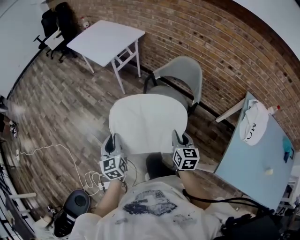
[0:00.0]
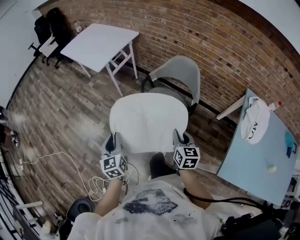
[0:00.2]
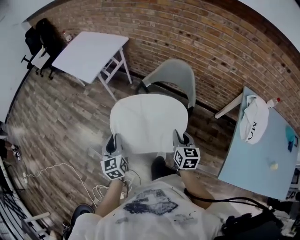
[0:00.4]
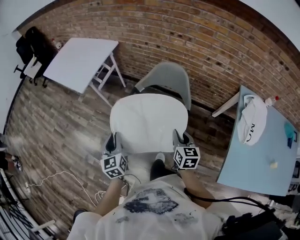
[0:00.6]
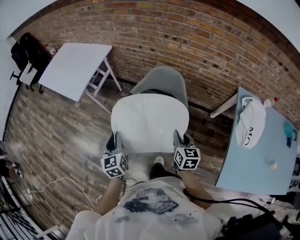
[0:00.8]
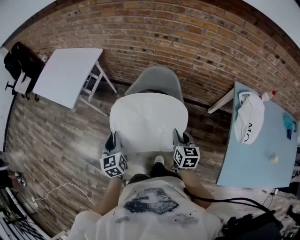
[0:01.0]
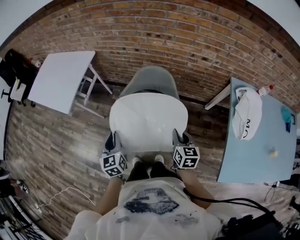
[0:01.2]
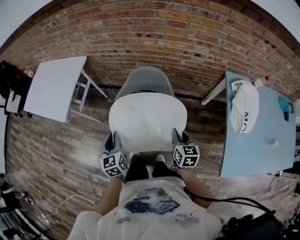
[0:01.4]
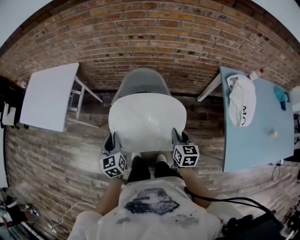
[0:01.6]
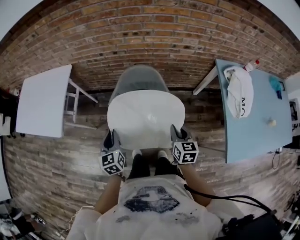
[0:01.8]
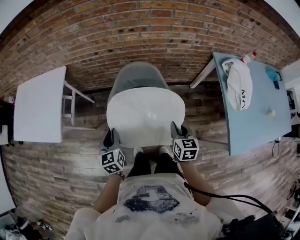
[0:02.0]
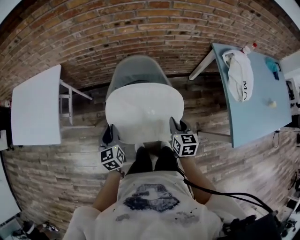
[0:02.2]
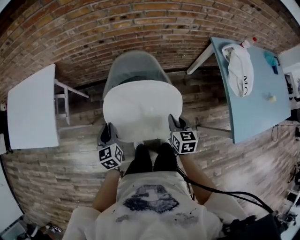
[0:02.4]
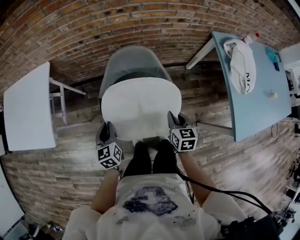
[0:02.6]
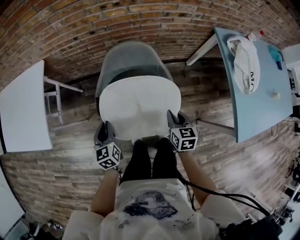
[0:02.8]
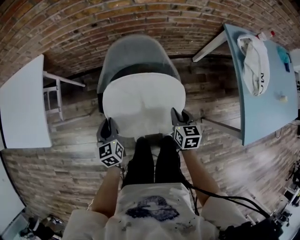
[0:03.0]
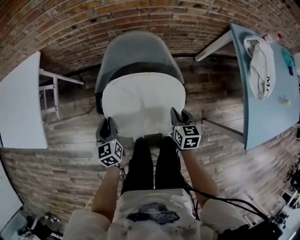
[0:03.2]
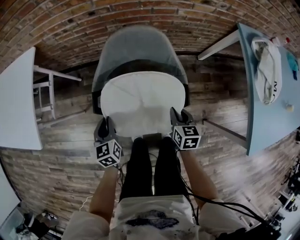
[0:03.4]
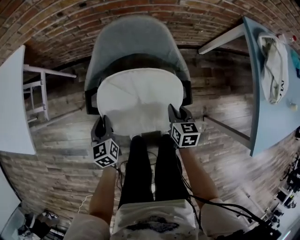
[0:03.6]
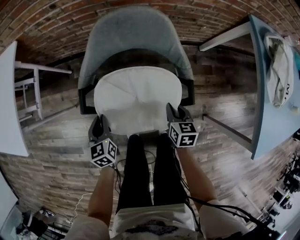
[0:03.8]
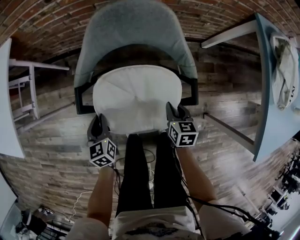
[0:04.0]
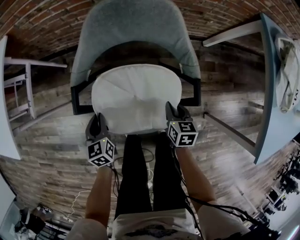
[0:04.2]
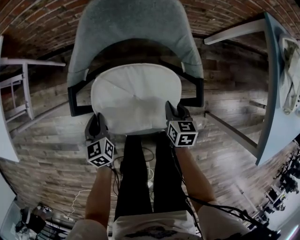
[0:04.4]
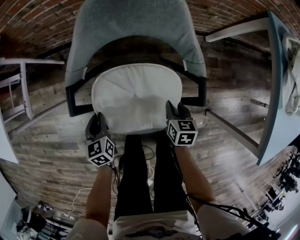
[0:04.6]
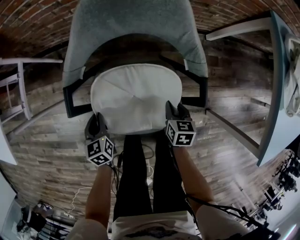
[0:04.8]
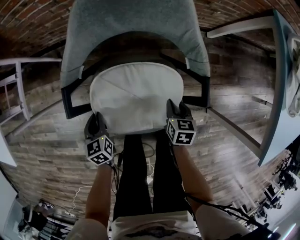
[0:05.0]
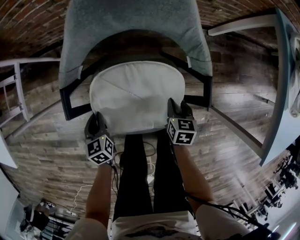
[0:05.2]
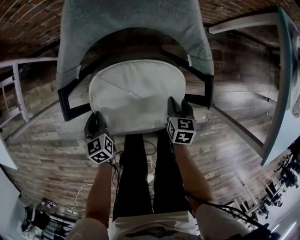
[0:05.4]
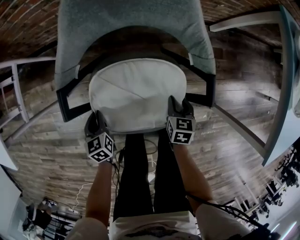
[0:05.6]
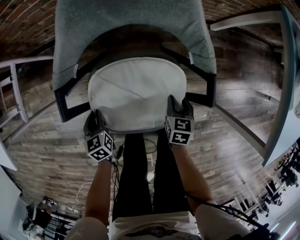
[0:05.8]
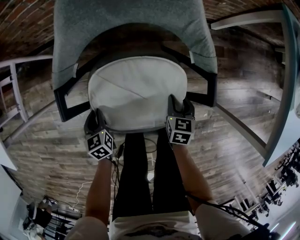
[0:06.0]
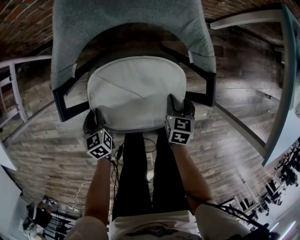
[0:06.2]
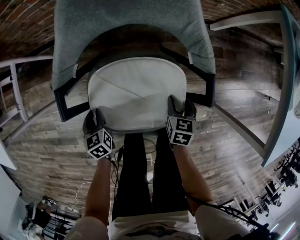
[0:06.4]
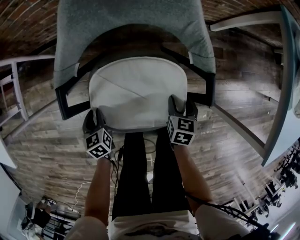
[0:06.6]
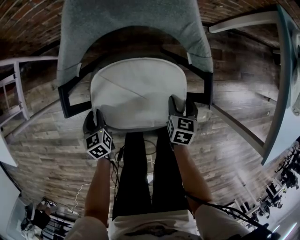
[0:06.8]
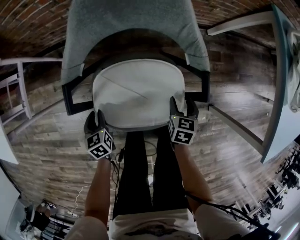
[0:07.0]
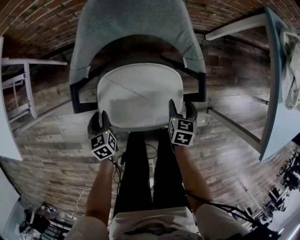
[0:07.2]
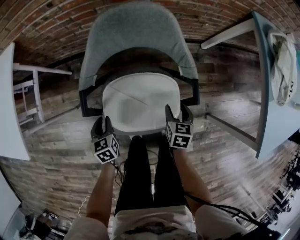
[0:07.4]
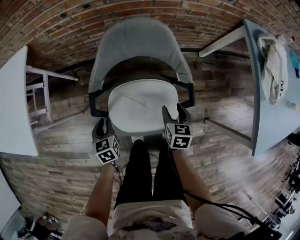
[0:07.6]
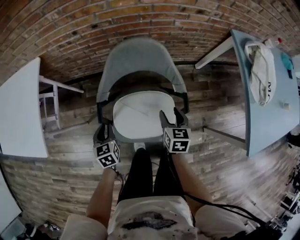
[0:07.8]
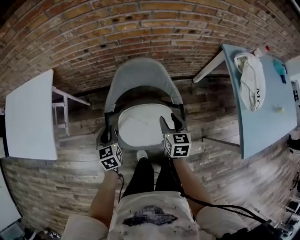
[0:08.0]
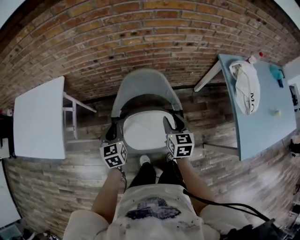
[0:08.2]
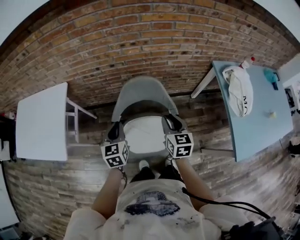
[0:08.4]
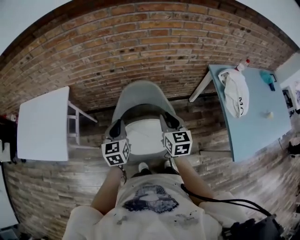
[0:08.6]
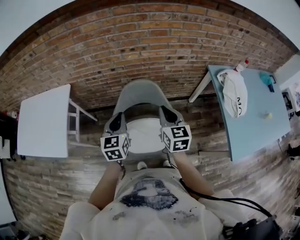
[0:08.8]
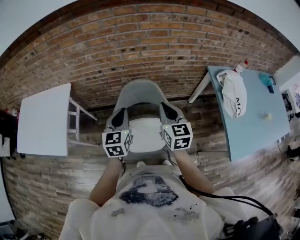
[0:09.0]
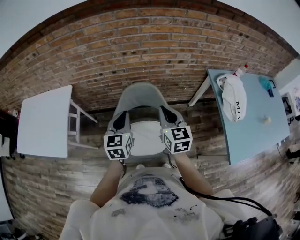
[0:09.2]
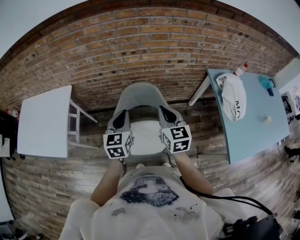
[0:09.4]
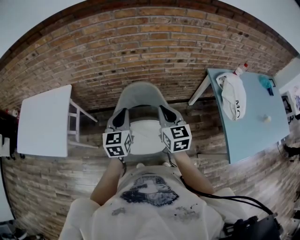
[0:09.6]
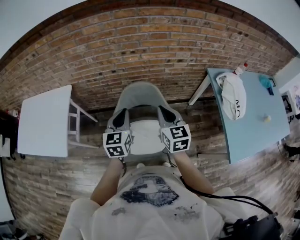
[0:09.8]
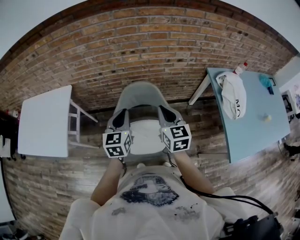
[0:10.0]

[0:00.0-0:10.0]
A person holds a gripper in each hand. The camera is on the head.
0:00.0 to 0:01.4: The two grippers go approximately 35 cm forward and to the right. The left gripper changes its angle by some 30 degrees. Meanwhile the right gripper swivels approximately 30 degrees.
0:01.4 to 0:02.8: The right gripper shifts some 15 cm downward and to the left; the left gripper goes approximately 20 cm downward and forward.
0:02.8 to 0:04.2: Both grippers move downward, some 25 cm.
0:04.2 to 0:05.8: The two grippers go roughly 10 cm downward.
0:05.8 to 0:07.2: Both grippers move upward, approximately 5 cm. The right gripper opens.
0:07.2 to 0:08.6: The grippers both shift upward by roughly 50 cm. The right gripper points its fingers about 30 degrees further upward, and closes up. Meanwhile the left gripper changes its angle by about 30 degrees.
0:08.6 to 0:10.0: Both grippers move upward, roughly 5 cm.

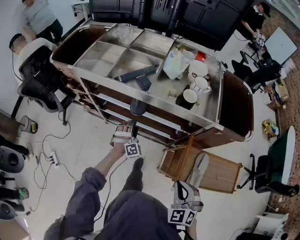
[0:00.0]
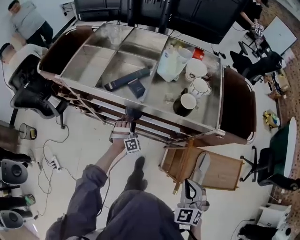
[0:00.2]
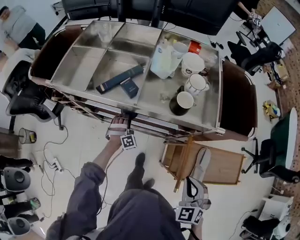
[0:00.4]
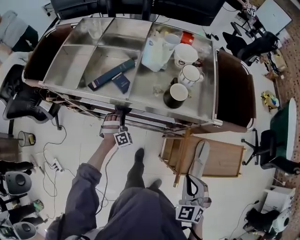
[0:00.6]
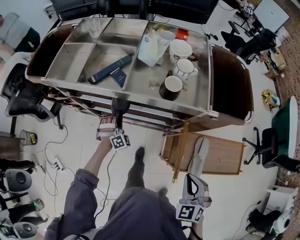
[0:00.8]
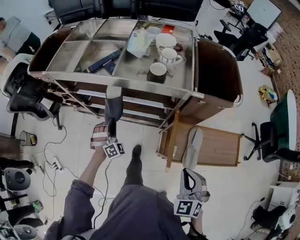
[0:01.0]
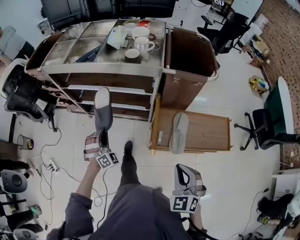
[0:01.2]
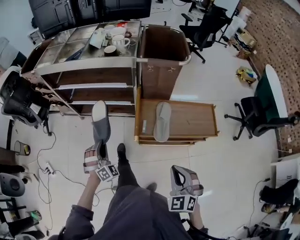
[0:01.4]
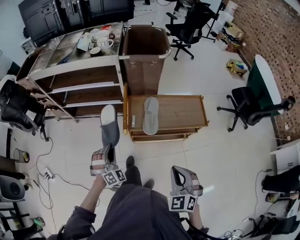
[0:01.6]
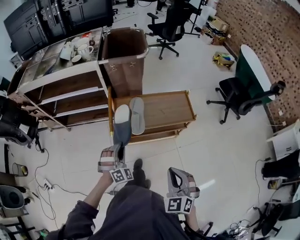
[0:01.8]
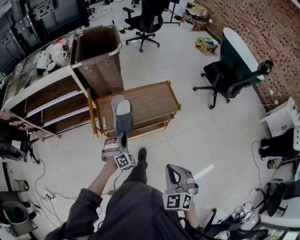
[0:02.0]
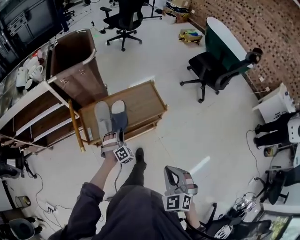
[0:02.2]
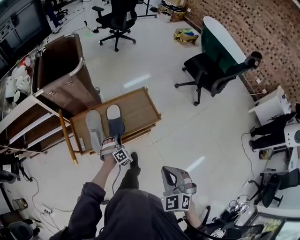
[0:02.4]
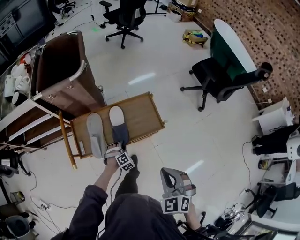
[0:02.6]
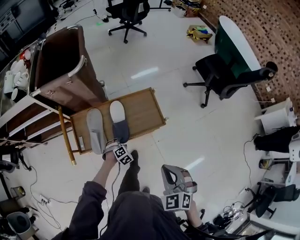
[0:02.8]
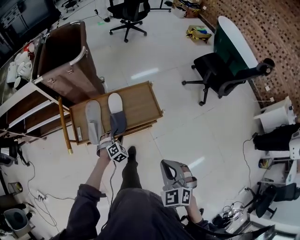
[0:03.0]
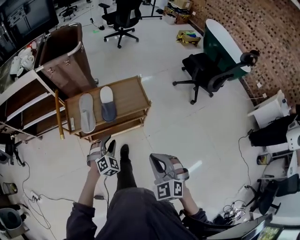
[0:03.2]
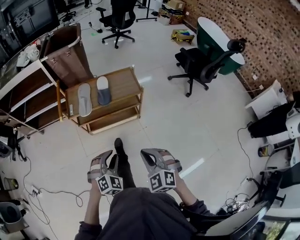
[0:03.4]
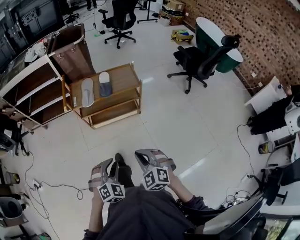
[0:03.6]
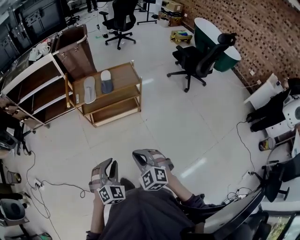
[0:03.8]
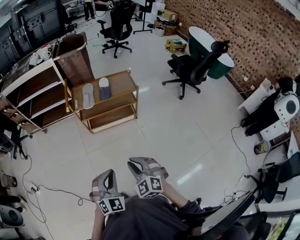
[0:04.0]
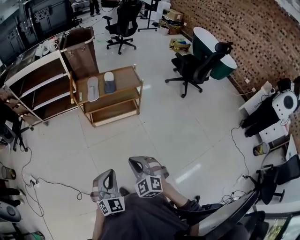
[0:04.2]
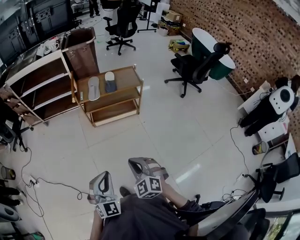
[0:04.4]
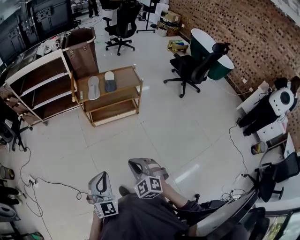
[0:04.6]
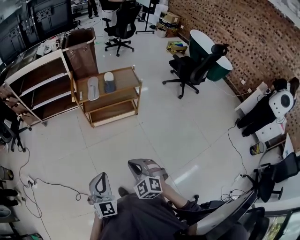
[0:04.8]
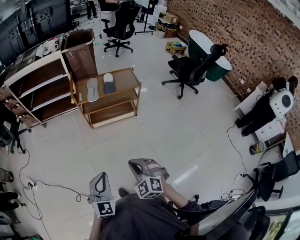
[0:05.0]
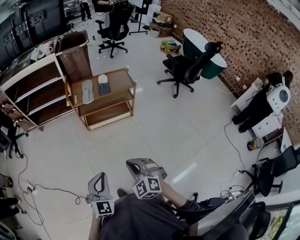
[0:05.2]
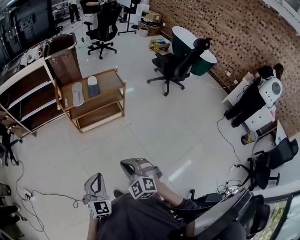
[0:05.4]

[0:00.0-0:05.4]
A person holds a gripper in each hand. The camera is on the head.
0:00.0 to 0:01.4: The left gripper travels backward by roughly 35 cm, and closes its fingers. The right gripper heads backward and to the right, covering about 35 cm.
0:01.4 to 0:02.8: The left gripper changes place by about 60 cm, tips its fingers downward by approximately 40 degrees, and opens up, while the right gripper shifts by about 35 cm, and turns by approximately 20 degrees.
0:02.8 to 0:04.0: The two grippers travel together, backward, some 60 cm. The left gripper travels upward by roughly 35 cm, tilts its fingers approximately 40 degrees upward, and closes up. The right gripper swivels some 20 degrees.
0:04.0 to 0:05.4: The right gripper is displaced backward by some 5 cm. Meanwhile the left gripper moves to the left and backward, approximately 10 cm.

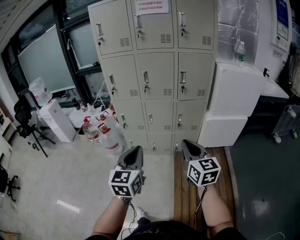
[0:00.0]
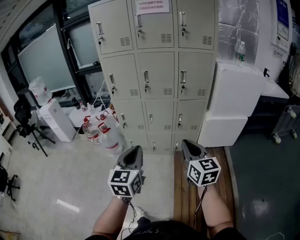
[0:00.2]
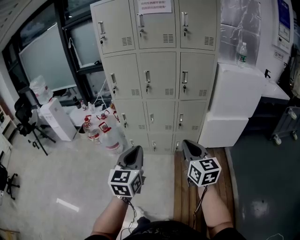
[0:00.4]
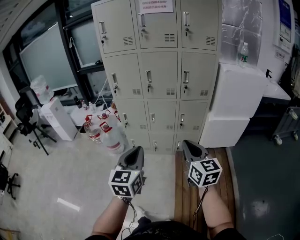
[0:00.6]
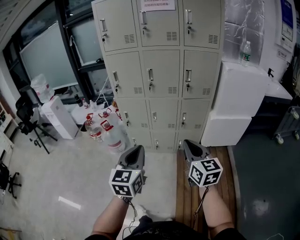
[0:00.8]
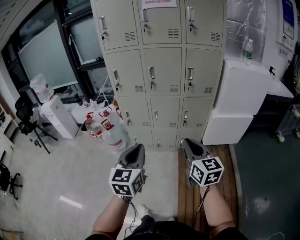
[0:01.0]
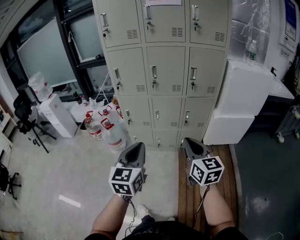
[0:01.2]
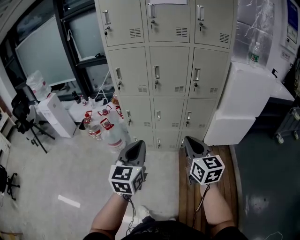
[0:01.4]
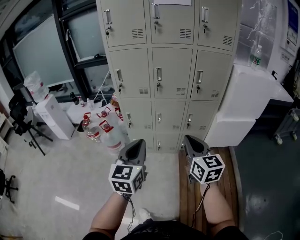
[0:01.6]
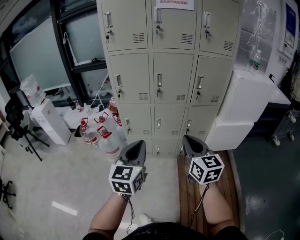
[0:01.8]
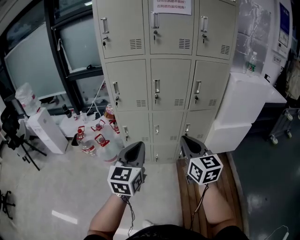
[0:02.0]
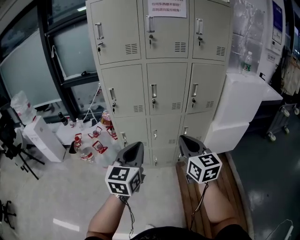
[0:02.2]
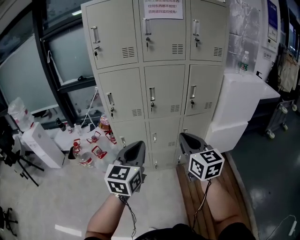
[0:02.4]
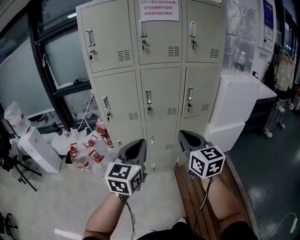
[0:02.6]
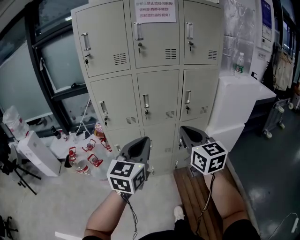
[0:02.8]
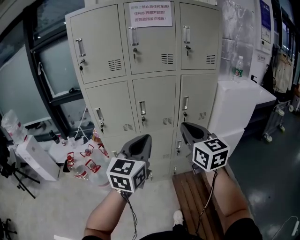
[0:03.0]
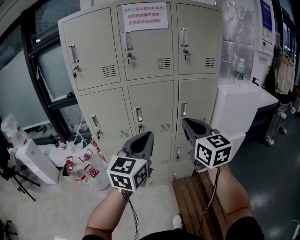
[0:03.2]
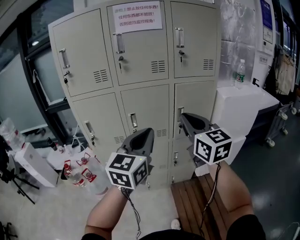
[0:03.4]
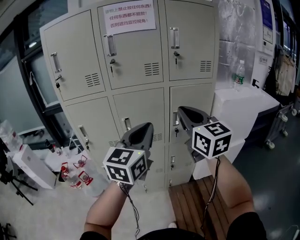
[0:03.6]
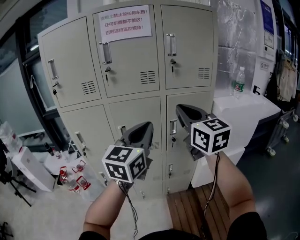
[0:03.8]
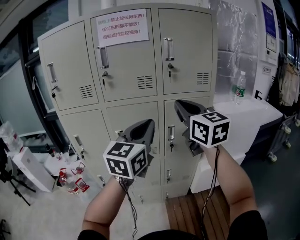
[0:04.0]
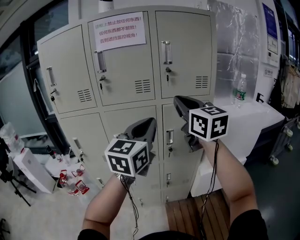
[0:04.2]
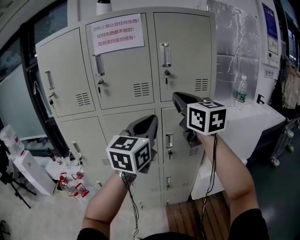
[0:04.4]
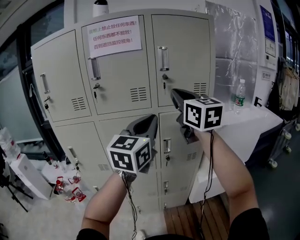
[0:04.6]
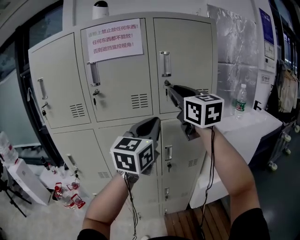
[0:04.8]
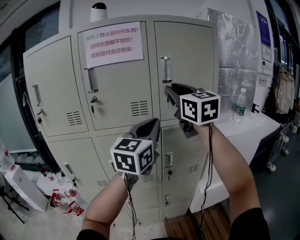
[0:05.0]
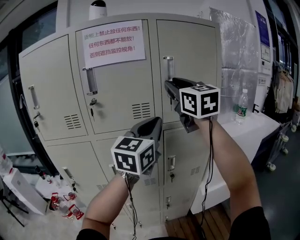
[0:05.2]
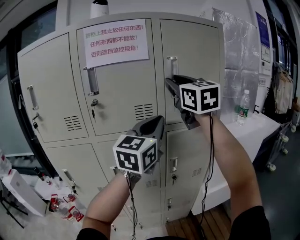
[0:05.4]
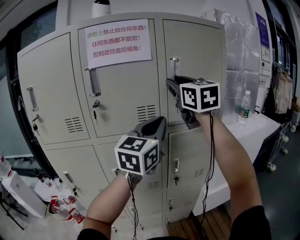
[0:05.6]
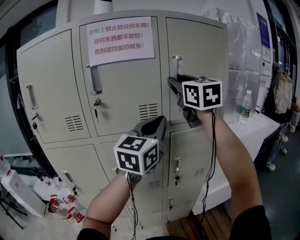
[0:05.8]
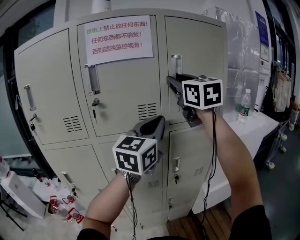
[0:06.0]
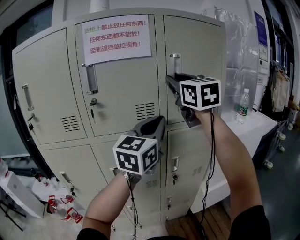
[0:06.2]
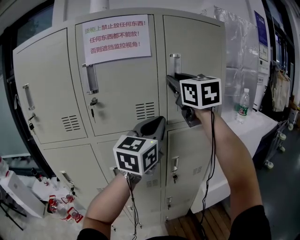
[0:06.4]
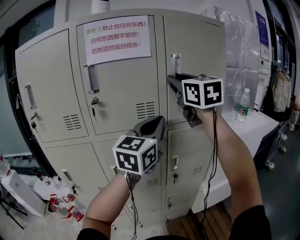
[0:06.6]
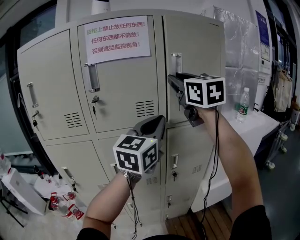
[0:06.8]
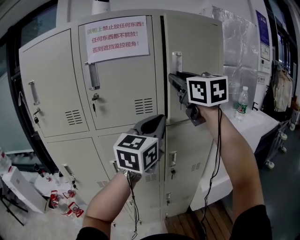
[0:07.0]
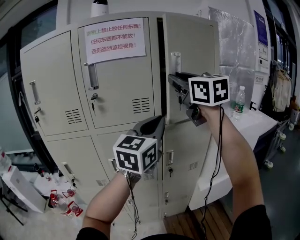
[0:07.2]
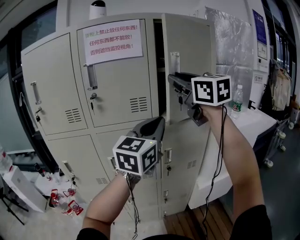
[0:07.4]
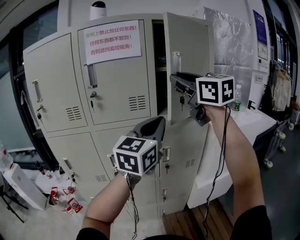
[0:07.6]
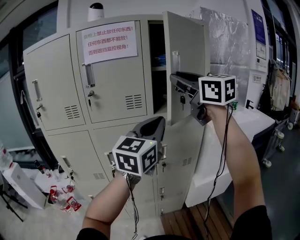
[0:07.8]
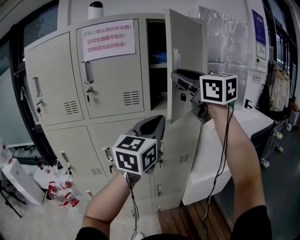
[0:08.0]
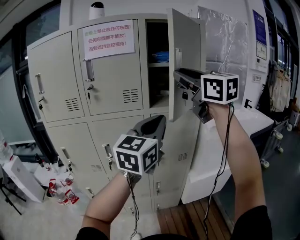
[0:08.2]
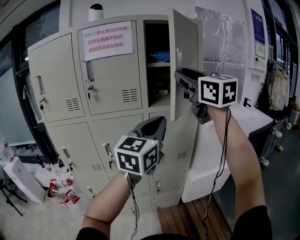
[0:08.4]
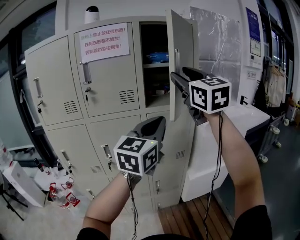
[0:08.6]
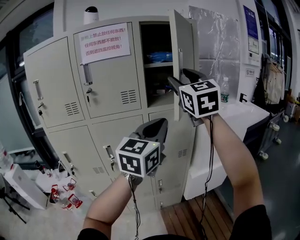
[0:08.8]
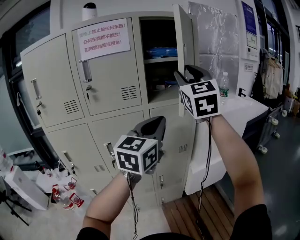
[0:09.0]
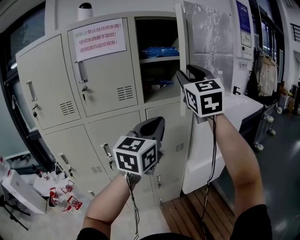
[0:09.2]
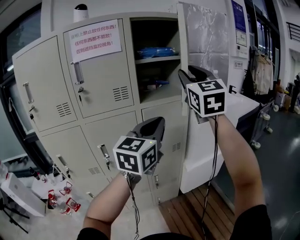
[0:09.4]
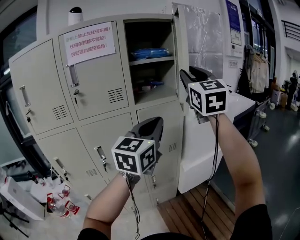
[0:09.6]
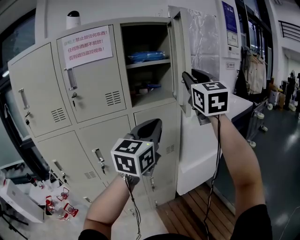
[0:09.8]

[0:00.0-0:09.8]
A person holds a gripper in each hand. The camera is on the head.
0:00.0 to 0:01.4: The left gripper shifts some 10 cm forward and to the left, while the right gripper travels to the left and forward by some 10 cm.
0:01.4 to 0:02.8: The left gripper heads forward and upward, covering approximately 20 cm, and changes its angle by about 20 degrees; the right gripper goes roughly 20 cm forward, upward and to the left.
0:02.8 to 0:04.2: The right gripper heads forward, upward and to the right, covering approximately 35 cm. The left gripper is displaced forward, to the right and upward by roughly 35 cm.
0:04.2 to 0:05.6: Both grippers travel together forward and upward, some 20 cm. The right gripper opens.
0:05.6 to 0:07.0: There are only small adjustments of the grippers.
0:07.0 to 0:08.4: Both grippers move backward and to the right, approximately 15 cm.
0:08.4 to 0:09.8: The right gripper goes approximately 10 cm to the right, changes its angle by some 30 degrees, and opens and closes again.
